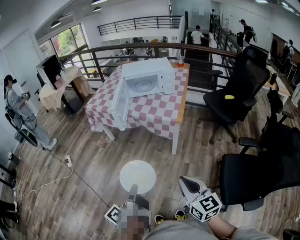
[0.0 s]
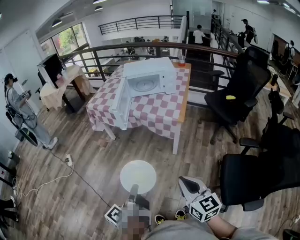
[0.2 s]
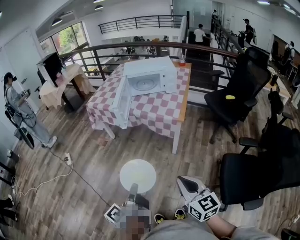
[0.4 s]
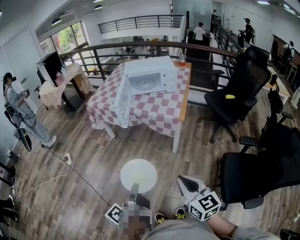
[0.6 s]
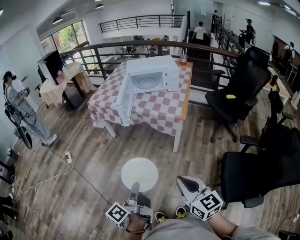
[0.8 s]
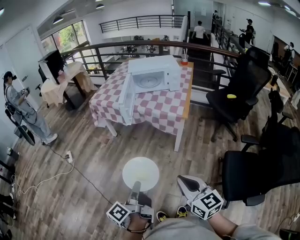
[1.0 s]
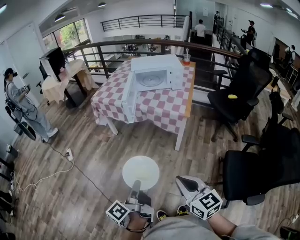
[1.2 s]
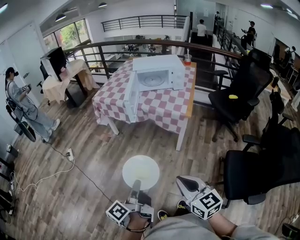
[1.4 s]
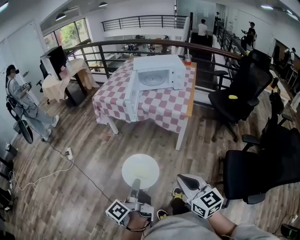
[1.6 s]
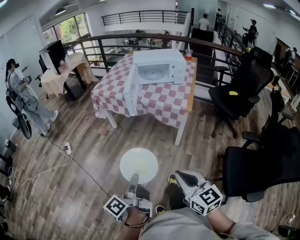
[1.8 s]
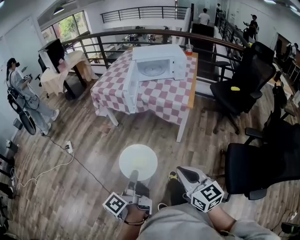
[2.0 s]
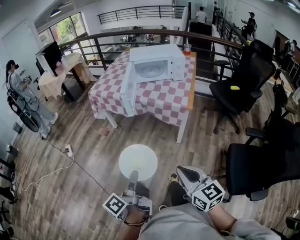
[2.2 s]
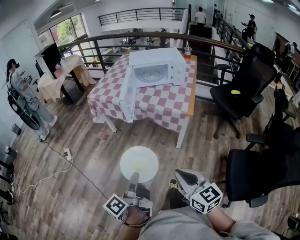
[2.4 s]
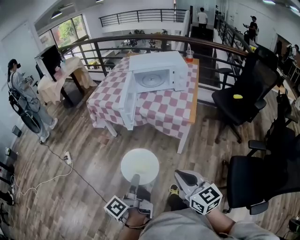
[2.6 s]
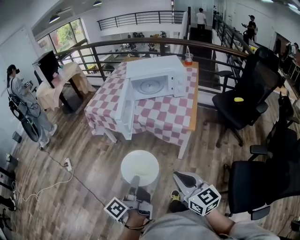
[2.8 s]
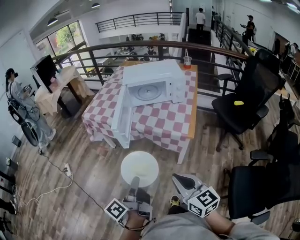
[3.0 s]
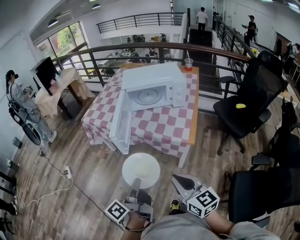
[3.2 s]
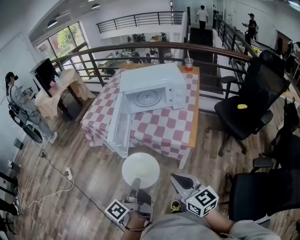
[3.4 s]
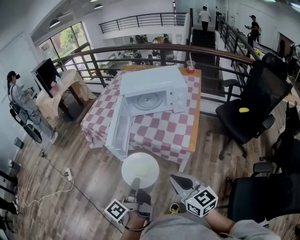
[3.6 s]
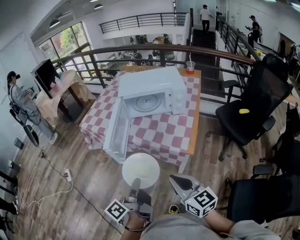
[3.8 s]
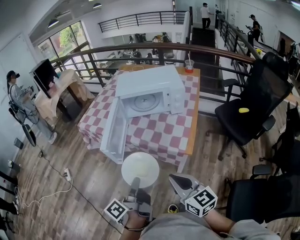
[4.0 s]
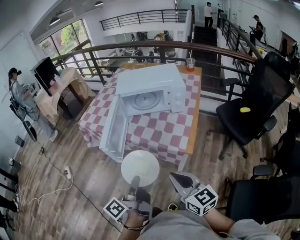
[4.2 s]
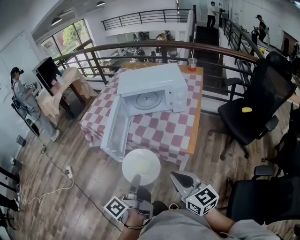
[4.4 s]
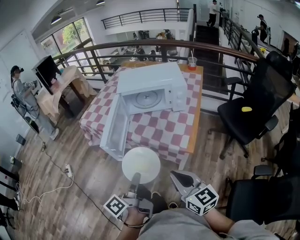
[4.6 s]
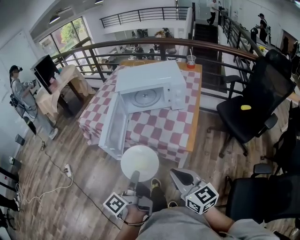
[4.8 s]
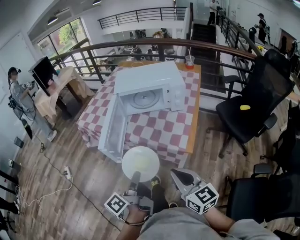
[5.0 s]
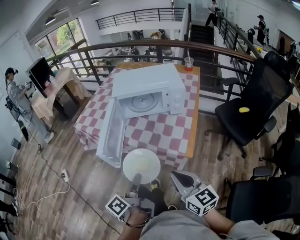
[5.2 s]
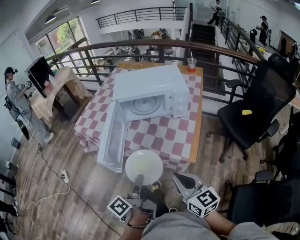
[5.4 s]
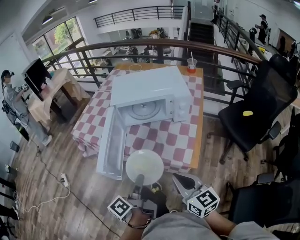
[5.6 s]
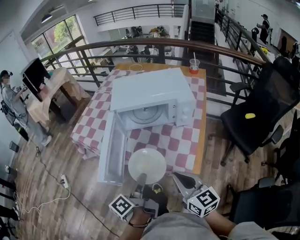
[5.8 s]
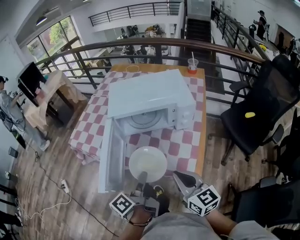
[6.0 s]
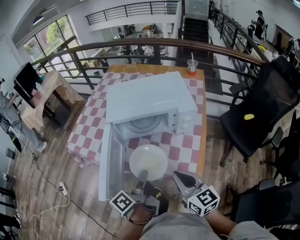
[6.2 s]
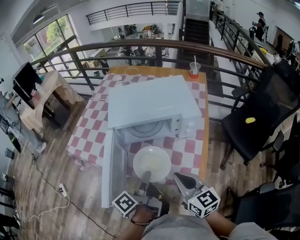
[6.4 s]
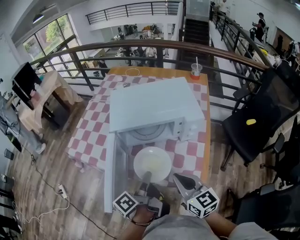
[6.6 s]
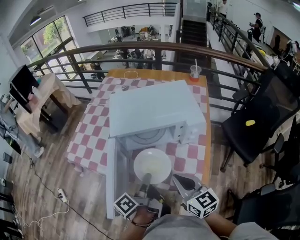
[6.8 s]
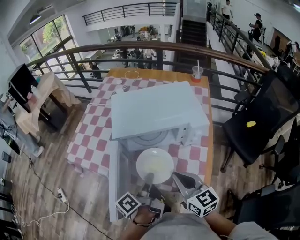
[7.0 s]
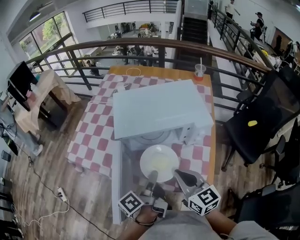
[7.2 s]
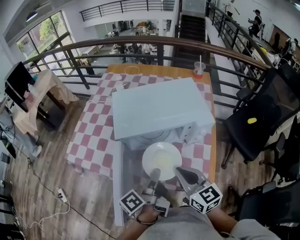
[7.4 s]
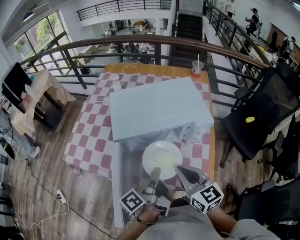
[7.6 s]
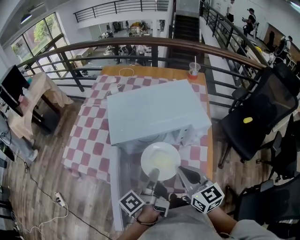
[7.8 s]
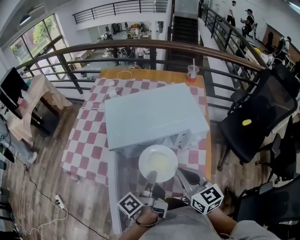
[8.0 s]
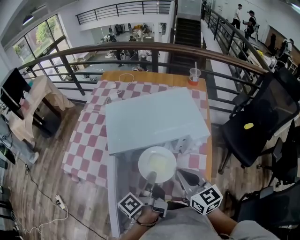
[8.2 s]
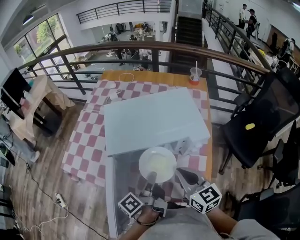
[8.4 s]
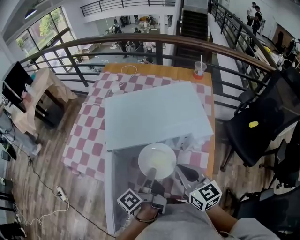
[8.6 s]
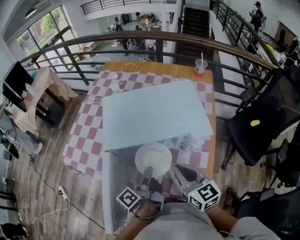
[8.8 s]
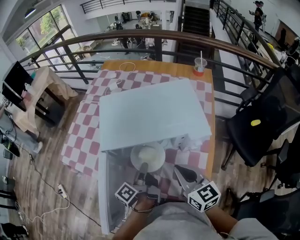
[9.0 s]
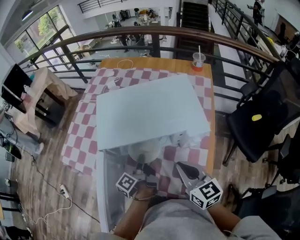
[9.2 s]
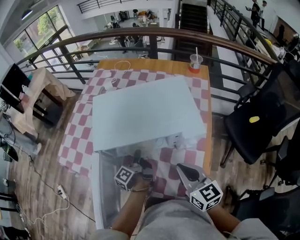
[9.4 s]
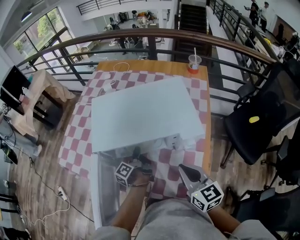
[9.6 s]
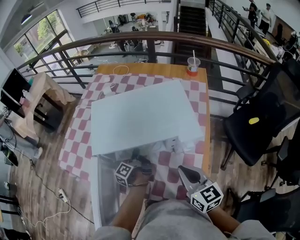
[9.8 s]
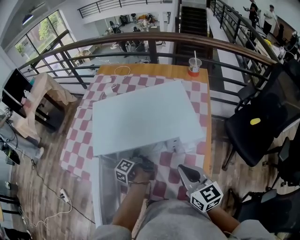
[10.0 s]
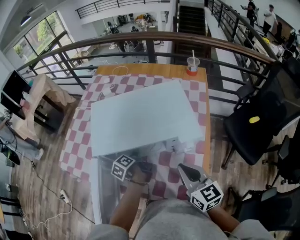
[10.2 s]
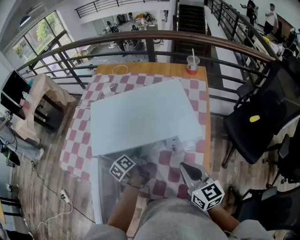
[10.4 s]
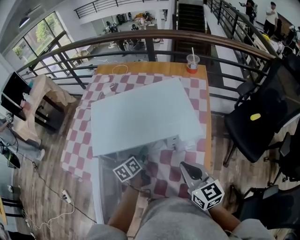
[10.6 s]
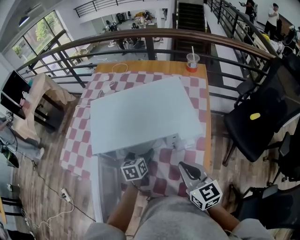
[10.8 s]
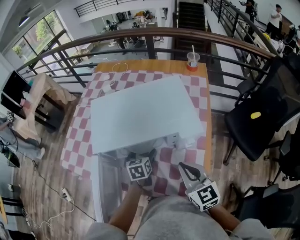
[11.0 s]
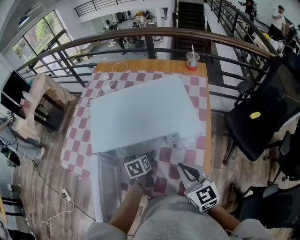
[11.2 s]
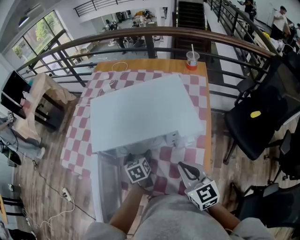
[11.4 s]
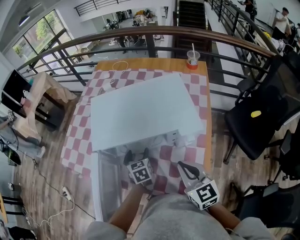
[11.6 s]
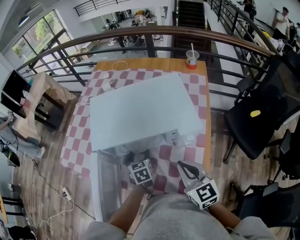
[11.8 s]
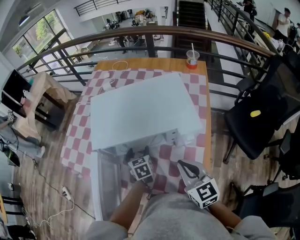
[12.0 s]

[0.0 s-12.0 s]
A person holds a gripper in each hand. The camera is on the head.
0.0 to 1.6 s: The grippers both shift to the left by approximately 10 cm.
1.6 to 3.0 s: Both grippers move forward, some 25 cm.
3.0 to 4.4 s: Both grippers travel together forward and to the right, approximately 15 cm.
4.4 to 6.0 s: Both grippers move forward, roughly 20 cm.
6.0 to 7.6 s: Both grippers move forward, some 15 cm.
7.6 to 9.0 s: The left gripper travels downward and forward by roughly 10 cm; the right gripper shifts some 10 cm forward and to the right.
9.0 to 10.4 s: The left gripper shifts approximately 10 cm forward and downward, swivels roughly 30 degrees, and opens up. The right gripper is displaced to the right by about 5 cm.
10.4 to 12.0 s: The left gripper twists about 50 degrees clockwise, seen from behind.

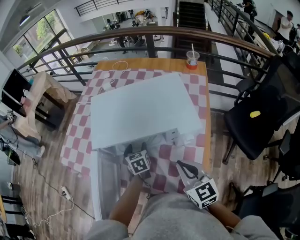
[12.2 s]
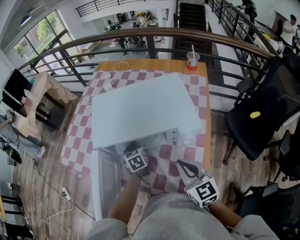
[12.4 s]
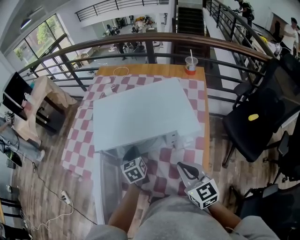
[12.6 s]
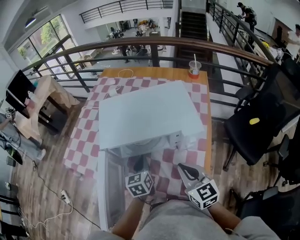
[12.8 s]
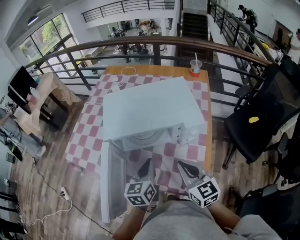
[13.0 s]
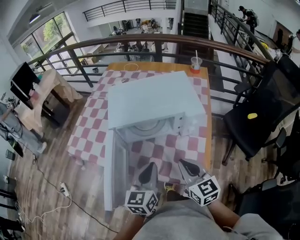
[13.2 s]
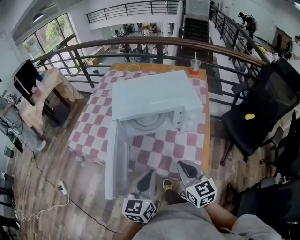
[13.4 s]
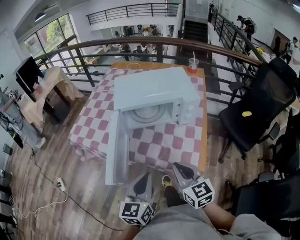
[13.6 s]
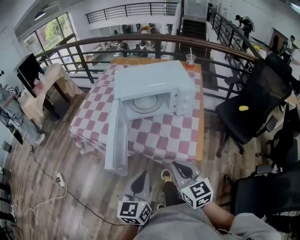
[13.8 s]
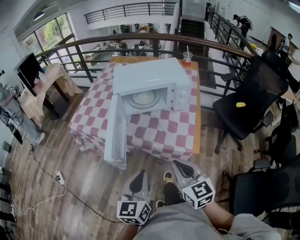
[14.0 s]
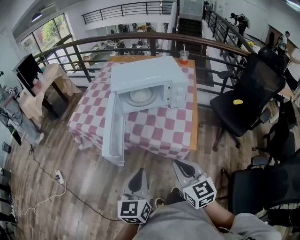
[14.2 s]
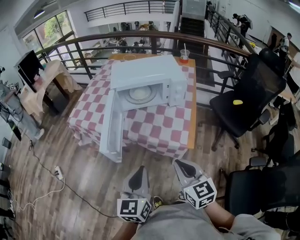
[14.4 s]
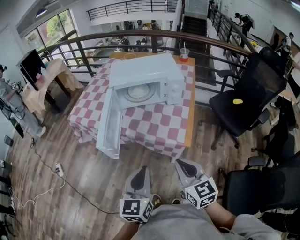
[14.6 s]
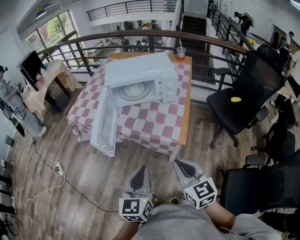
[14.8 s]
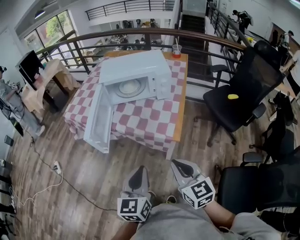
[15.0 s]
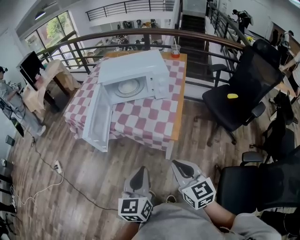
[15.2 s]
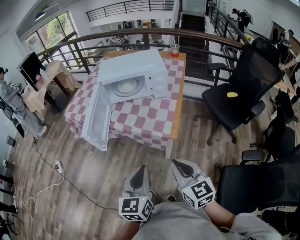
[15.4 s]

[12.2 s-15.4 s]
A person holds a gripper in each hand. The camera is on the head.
12.2 to 13.8 s: The left gripper travels backward and upward by some 50 cm, turns by about 40 degrees, and closes. Meanwhile the right gripper moves backward and to the left, about 30 cm.
13.8 to 15.4 s: The two grippers go approximately 20 cm backward and to the right.

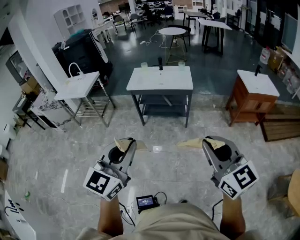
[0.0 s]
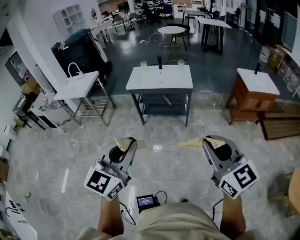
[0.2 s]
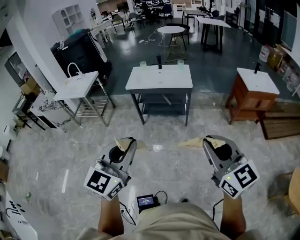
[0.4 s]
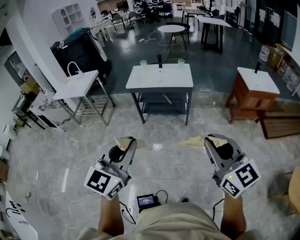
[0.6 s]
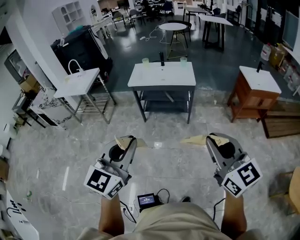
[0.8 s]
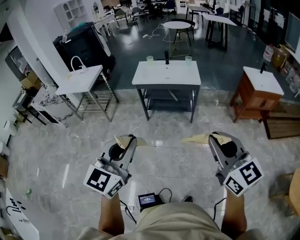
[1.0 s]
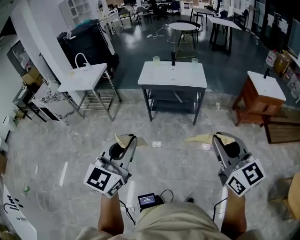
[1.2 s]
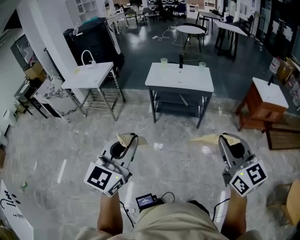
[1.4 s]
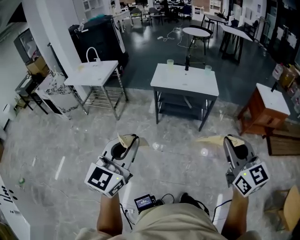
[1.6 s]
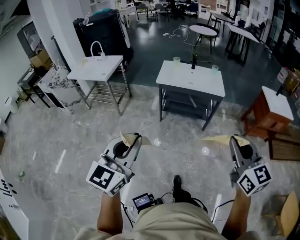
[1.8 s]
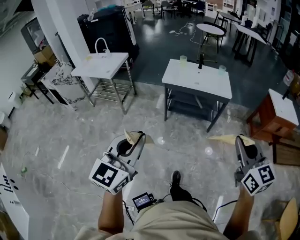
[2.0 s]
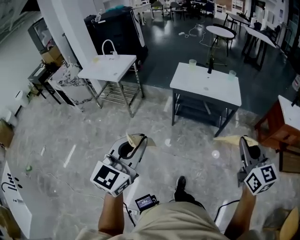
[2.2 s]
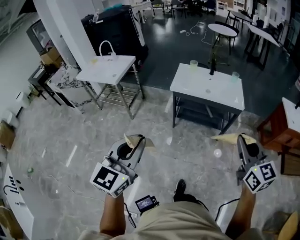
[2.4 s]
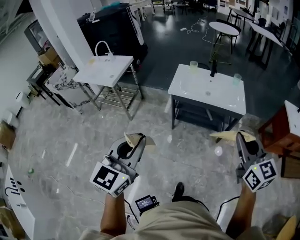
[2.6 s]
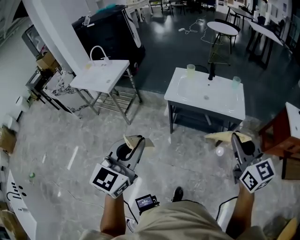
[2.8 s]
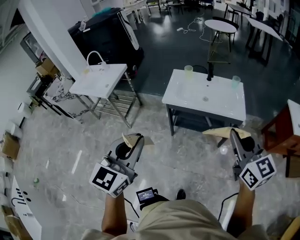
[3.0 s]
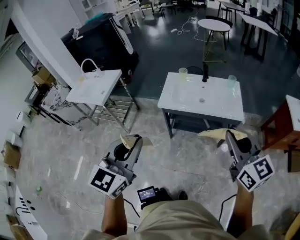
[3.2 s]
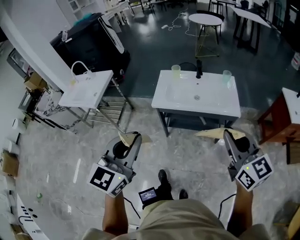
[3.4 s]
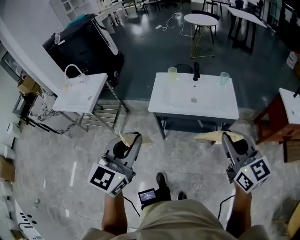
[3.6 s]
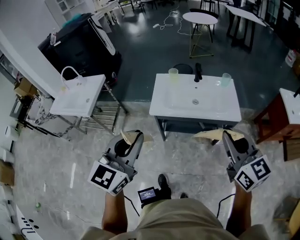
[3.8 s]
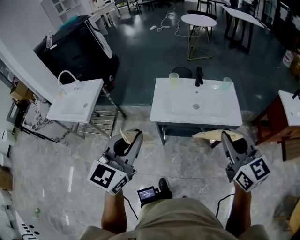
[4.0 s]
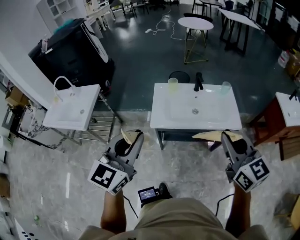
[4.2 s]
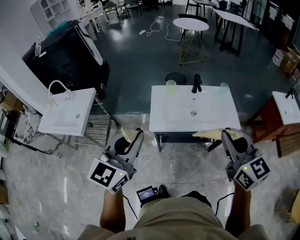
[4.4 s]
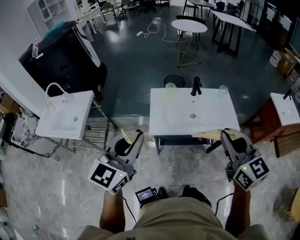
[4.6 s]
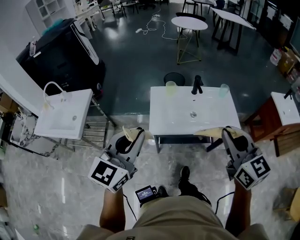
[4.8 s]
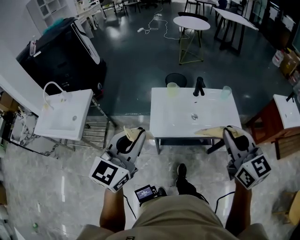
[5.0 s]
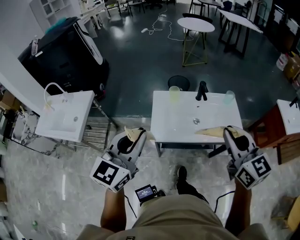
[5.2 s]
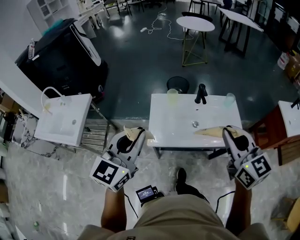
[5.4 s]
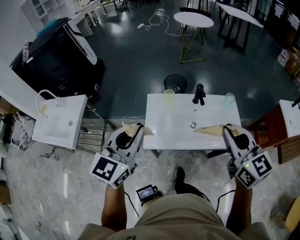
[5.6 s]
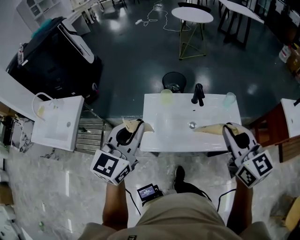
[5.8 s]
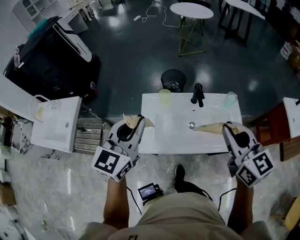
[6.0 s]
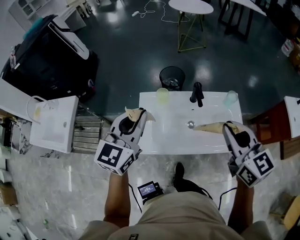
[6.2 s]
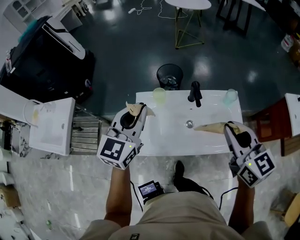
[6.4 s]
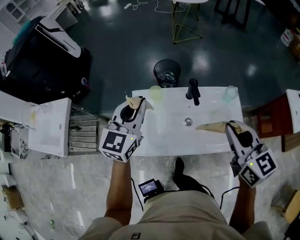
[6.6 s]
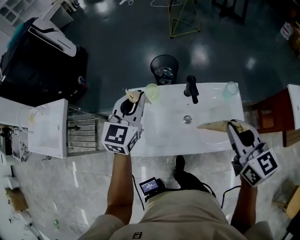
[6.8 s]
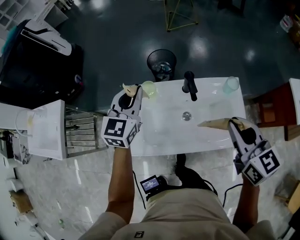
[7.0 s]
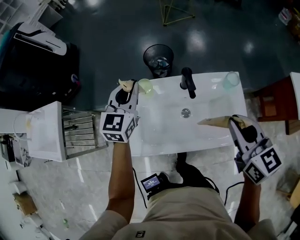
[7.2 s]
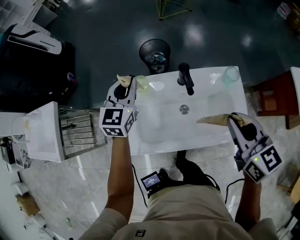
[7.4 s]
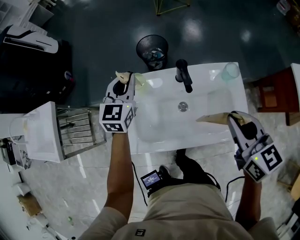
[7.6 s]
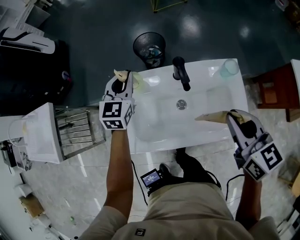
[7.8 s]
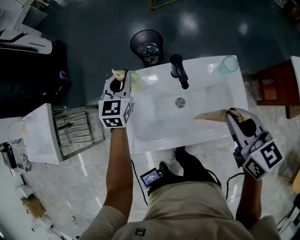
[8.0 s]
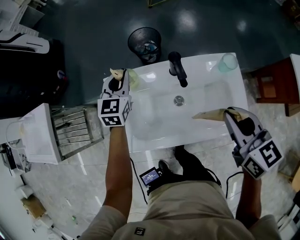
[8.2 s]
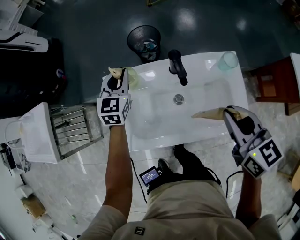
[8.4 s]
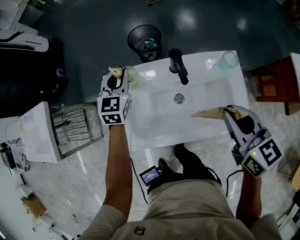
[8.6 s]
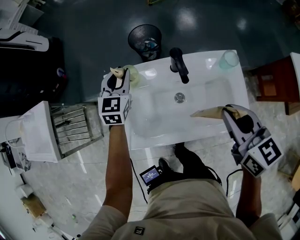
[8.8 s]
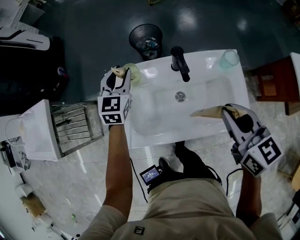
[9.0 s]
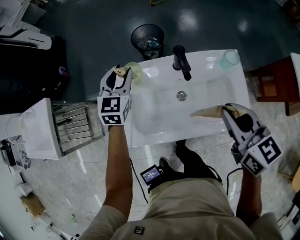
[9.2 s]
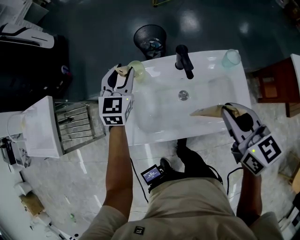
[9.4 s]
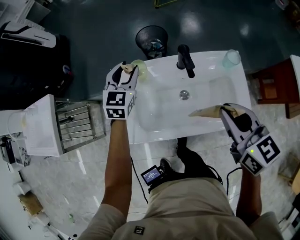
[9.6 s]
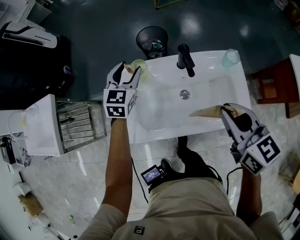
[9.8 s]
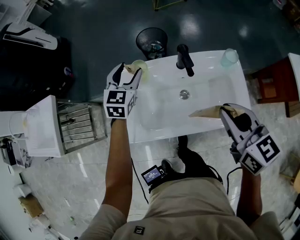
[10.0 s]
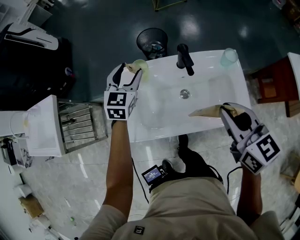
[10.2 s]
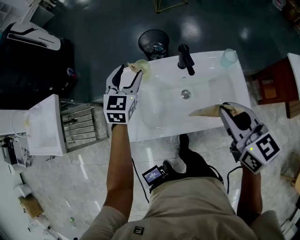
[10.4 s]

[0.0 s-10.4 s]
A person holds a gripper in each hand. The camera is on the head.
0.0 to 1.4 s: The right gripper goes approximately 15 cm to the left and forward. The left gripper is displaced to the left by about 20 cm.
1.4 to 3.0 s: The grippers both shift forward by approximately 40 cm.
3.0 to 4.4 s: The right gripper shifts some 25 cm forward and to the left; the left gripper goes about 30 cm forward.
4.4 to 6.0 s: Both grippers move forward, roughly 30 cm.
6.0 to 7.4 s: The left gripper goes roughly 30 cm forward and downward; the right gripper travels downward, forward and to the right by about 20 cm.
7.4 to 9.0 s: The left gripper shifts roughly 10 cm downward, and opens its fingers.
9.0 to 10.4 s: The left gripper travels upward and backward by approximately 10 cm, and opens its fingers. Meanwhile the right gripper shifts by roughly 10 cm.
